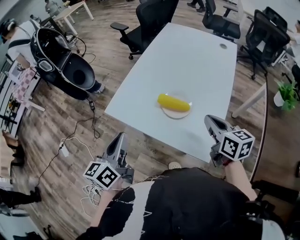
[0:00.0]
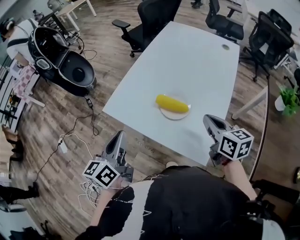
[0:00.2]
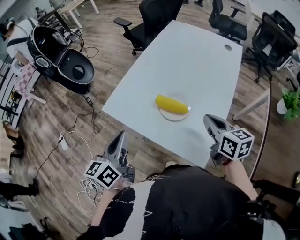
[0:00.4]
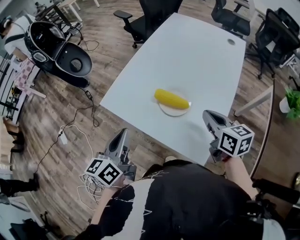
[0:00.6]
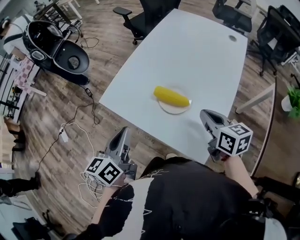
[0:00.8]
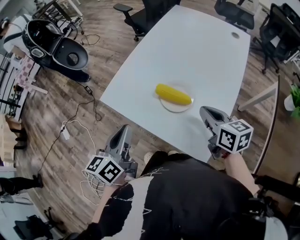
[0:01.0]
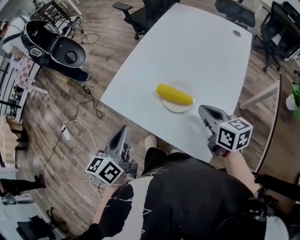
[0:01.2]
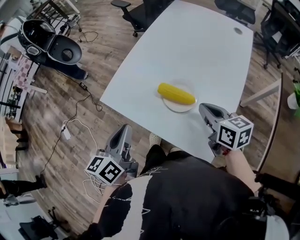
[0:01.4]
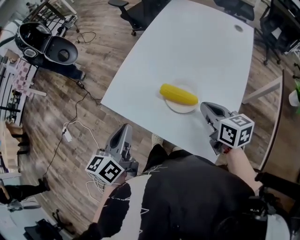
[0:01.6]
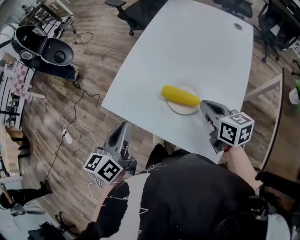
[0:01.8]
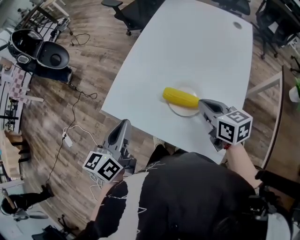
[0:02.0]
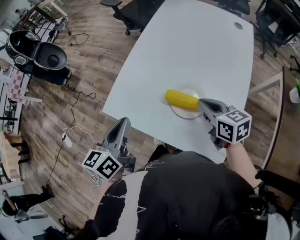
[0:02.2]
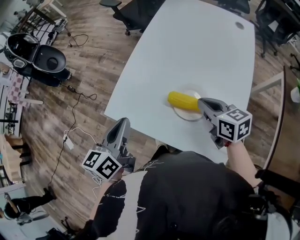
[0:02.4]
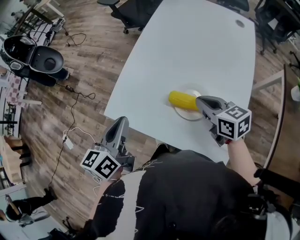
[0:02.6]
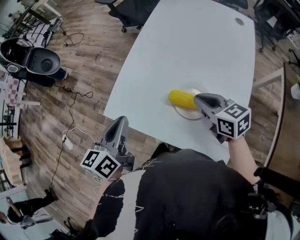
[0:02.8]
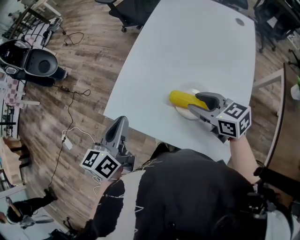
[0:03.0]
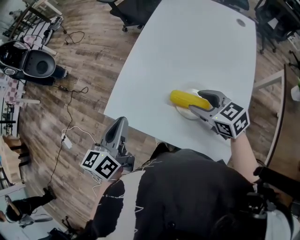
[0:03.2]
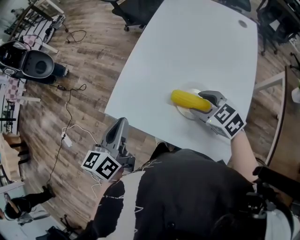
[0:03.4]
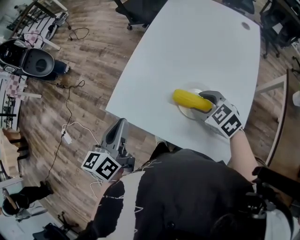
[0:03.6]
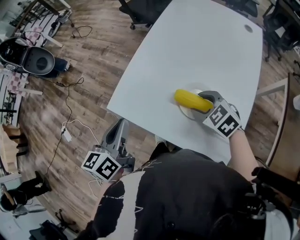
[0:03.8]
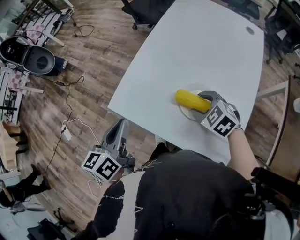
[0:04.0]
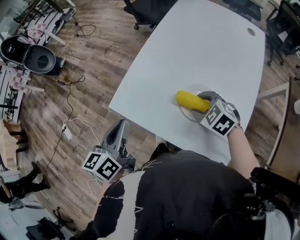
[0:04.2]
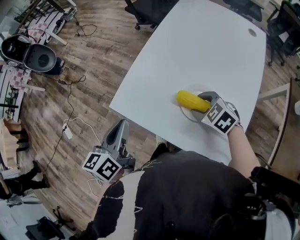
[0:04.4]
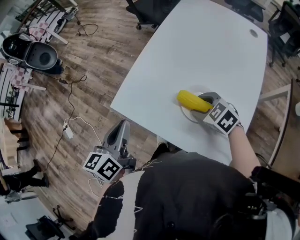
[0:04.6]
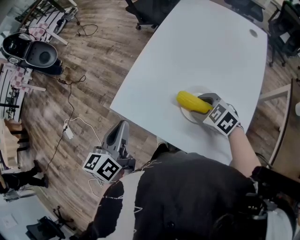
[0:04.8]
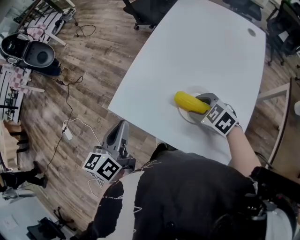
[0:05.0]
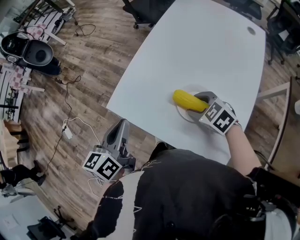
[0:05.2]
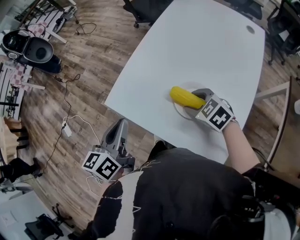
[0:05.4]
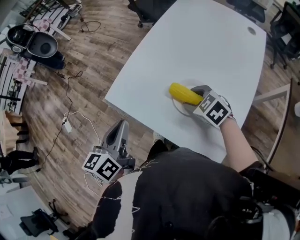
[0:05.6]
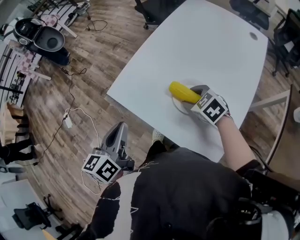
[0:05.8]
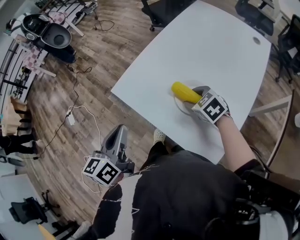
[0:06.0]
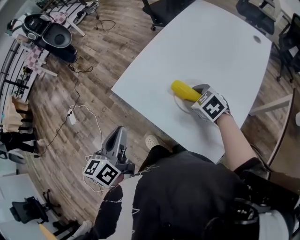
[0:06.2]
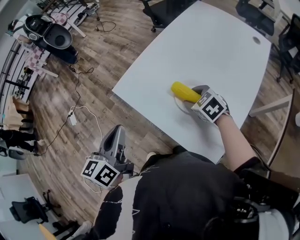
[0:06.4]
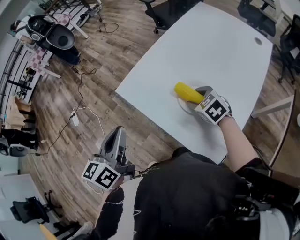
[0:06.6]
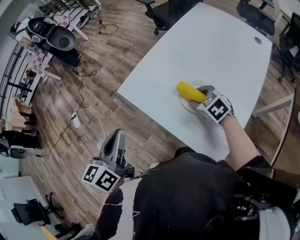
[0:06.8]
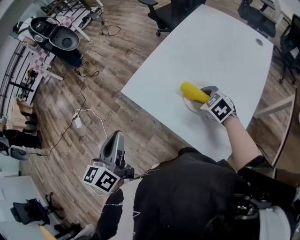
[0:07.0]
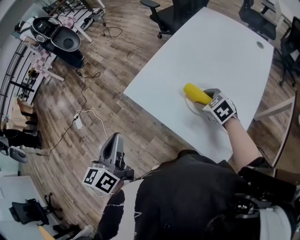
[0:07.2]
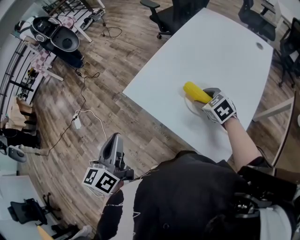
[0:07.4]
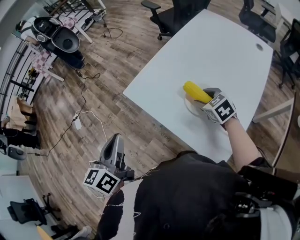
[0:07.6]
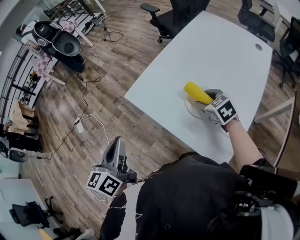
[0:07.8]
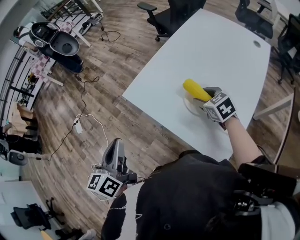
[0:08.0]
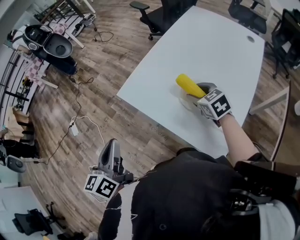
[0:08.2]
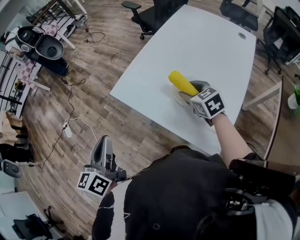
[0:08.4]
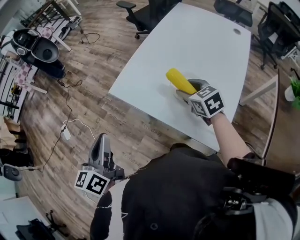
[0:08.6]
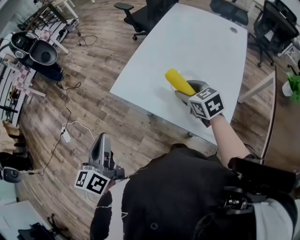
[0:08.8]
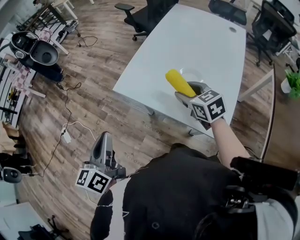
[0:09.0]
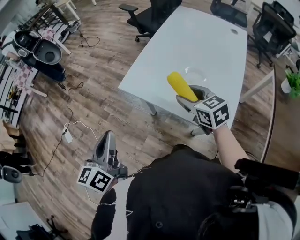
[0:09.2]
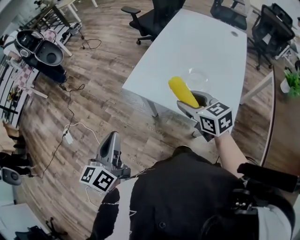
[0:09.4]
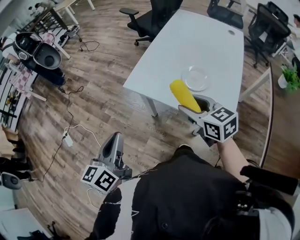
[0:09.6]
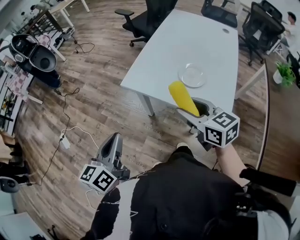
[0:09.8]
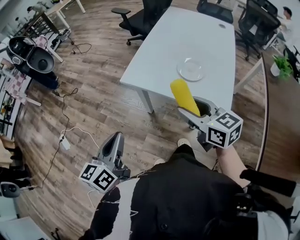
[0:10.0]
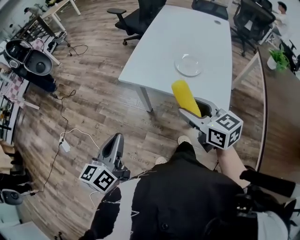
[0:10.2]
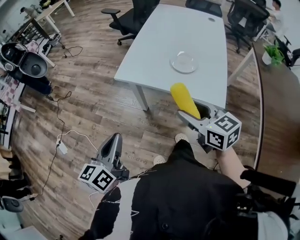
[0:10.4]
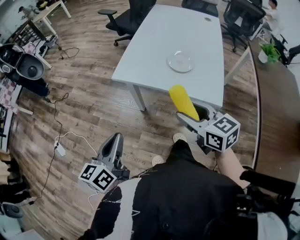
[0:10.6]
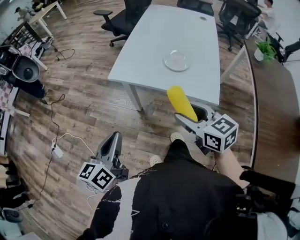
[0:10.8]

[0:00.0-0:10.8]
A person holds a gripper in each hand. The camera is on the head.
0:00.0 to 0:01.6: The left gripper moves roughly 5 cm, while the right gripper is displaced forward and downward by some 10 cm.
0:01.6 to 0:03.0: The right gripper is displaced to the left and forward by some 10 cm, and opens. The left gripper travels forward by some 10 cm.
0:03.0 to 0:04.6: The right gripper heads downward, covering some 5 cm, and turns by approximately 30 degrees.
0:04.6 to 0:06.2: The left gripper is displaced backward by about 10 cm.
0:06.2 to 0:07.8: The left gripper travels to the left by about 5 cm.
0:07.8 to 0:09.2: The right gripper travels to the left, upward and backward by approximately 15 cm, and rotates approximately 20 degrees, while the left gripper is displaced to the left by some 5 cm.
0:09.2 to 0:10.8: The left gripper moves backward, about 10 cm, and rotates roughly 20 degrees, while the right gripper goes roughly 20 cm backward.

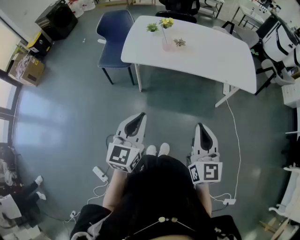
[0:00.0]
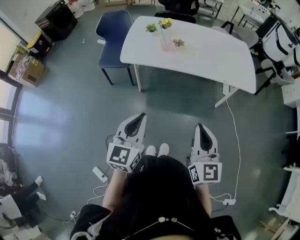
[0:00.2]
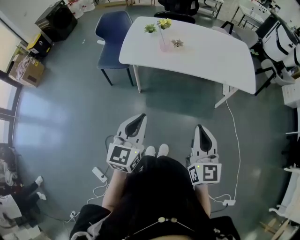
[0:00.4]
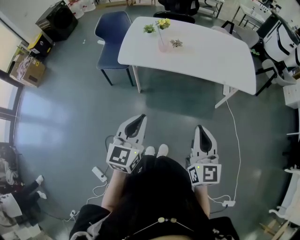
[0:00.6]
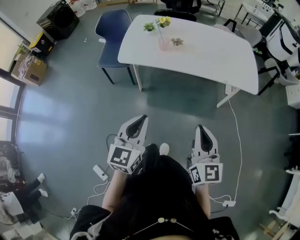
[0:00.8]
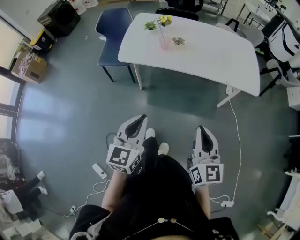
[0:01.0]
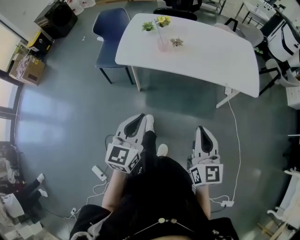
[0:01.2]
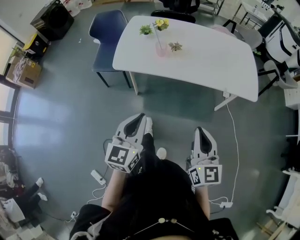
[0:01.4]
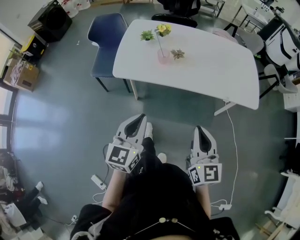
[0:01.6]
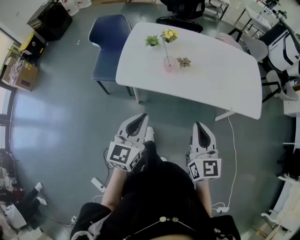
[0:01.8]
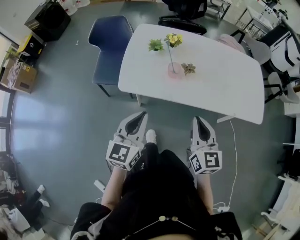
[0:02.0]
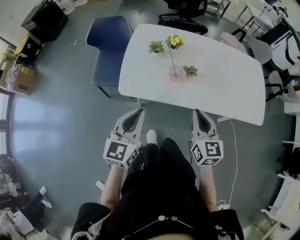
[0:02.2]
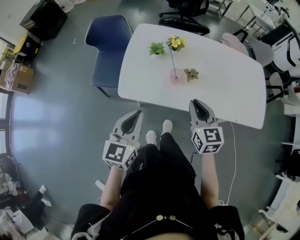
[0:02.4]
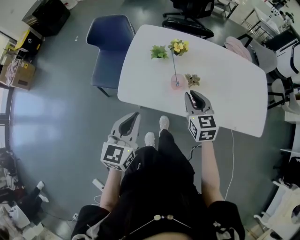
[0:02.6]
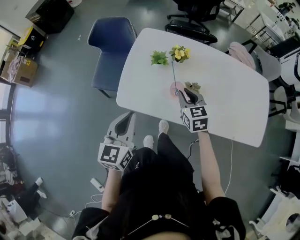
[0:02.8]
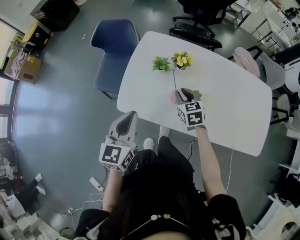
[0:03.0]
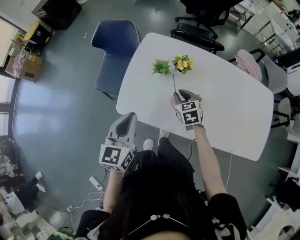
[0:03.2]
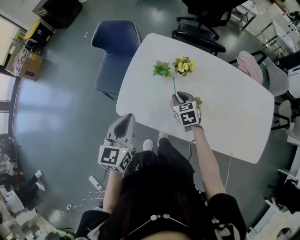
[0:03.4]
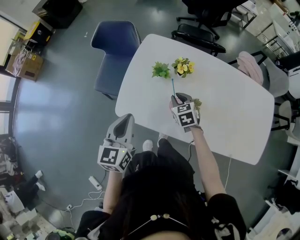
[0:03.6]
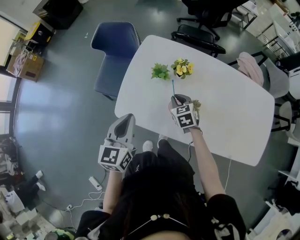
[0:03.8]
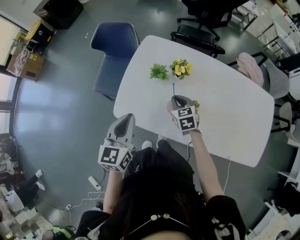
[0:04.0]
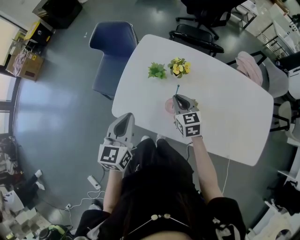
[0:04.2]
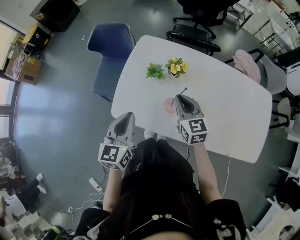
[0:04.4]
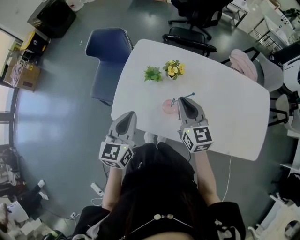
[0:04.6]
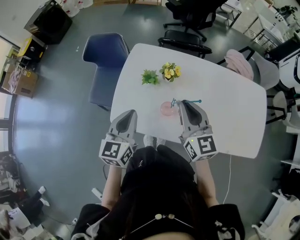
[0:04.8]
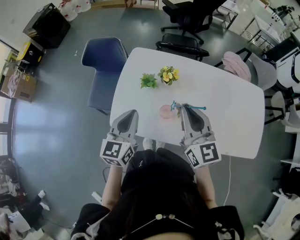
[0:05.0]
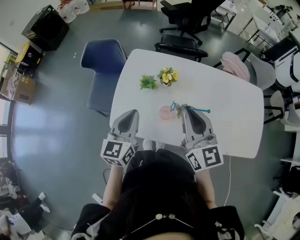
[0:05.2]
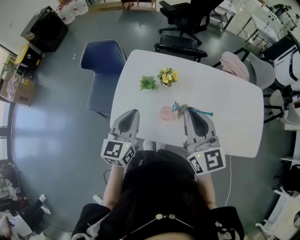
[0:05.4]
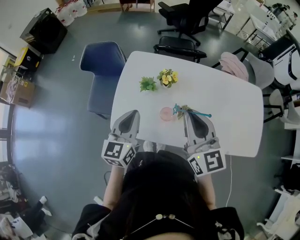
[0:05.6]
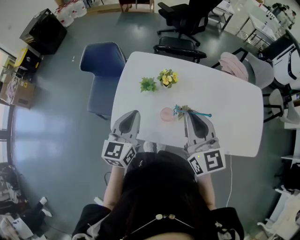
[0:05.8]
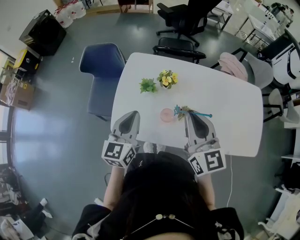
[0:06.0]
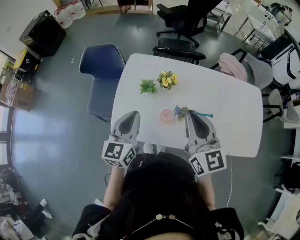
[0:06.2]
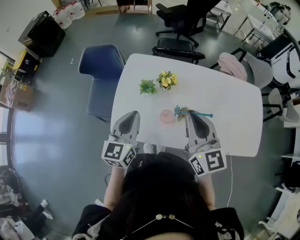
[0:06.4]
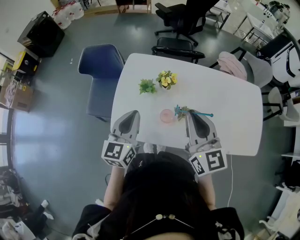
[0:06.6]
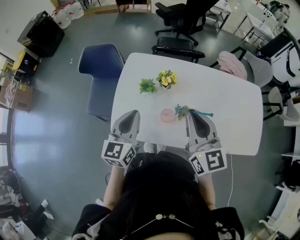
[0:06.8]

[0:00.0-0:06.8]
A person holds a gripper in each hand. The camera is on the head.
0:00.0 to 0:01.4: Both grippers travel together forward, about 10 cm.
0:01.4 to 0:02.8: The left gripper heads forward and to the left, covering about 35 cm. Meanwhile the right gripper goes roughly 50 cm forward, and swivels approximately 30 degrees.
0:02.8 to 0:04.0: The right gripper goes roughly 10 cm downward and forward. The left gripper travels forward by some 5 cm.
0:04.0 to 0:05.4: The right gripper heads upward, covering roughly 30 cm, and tips its fingers upward by roughly 40 degrees. Meanwhile the left gripper moves about 5 cm.
0:05.4 to 0:06.8: The two grippers keep their place.

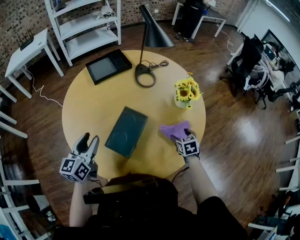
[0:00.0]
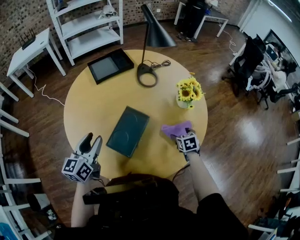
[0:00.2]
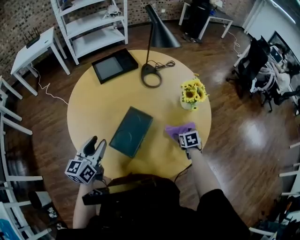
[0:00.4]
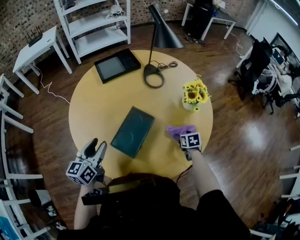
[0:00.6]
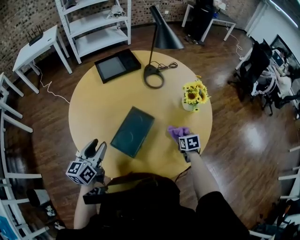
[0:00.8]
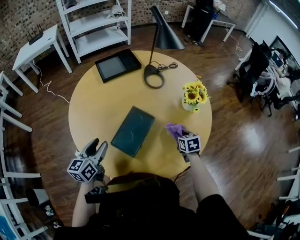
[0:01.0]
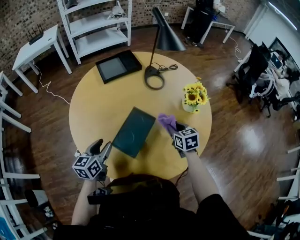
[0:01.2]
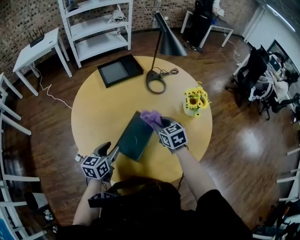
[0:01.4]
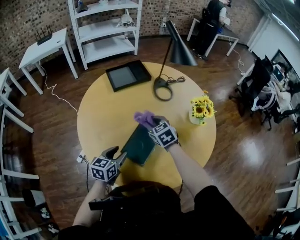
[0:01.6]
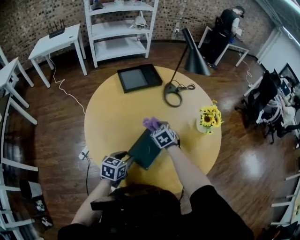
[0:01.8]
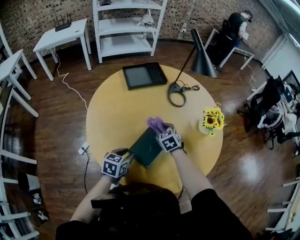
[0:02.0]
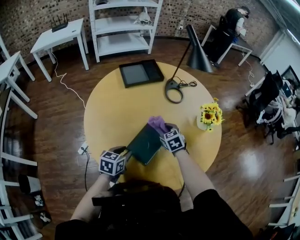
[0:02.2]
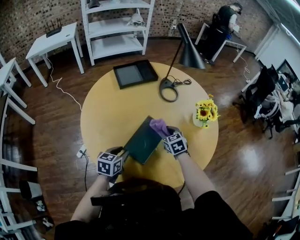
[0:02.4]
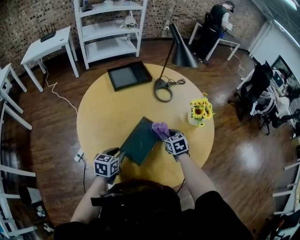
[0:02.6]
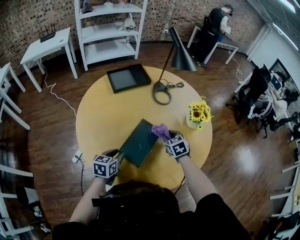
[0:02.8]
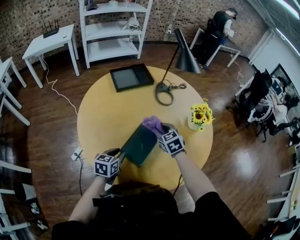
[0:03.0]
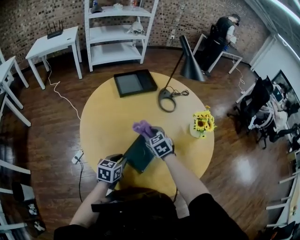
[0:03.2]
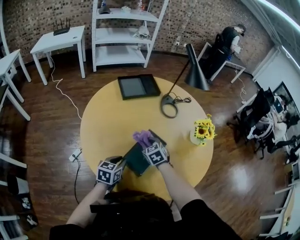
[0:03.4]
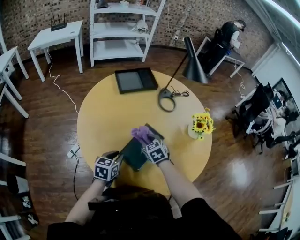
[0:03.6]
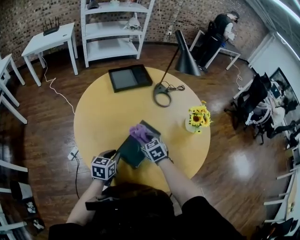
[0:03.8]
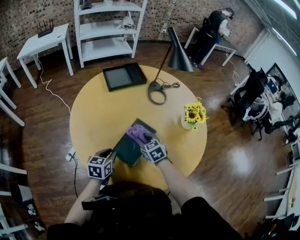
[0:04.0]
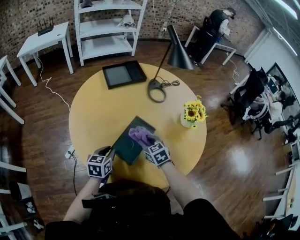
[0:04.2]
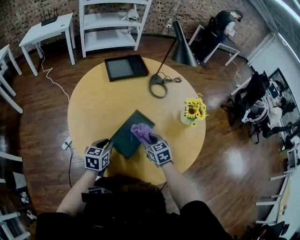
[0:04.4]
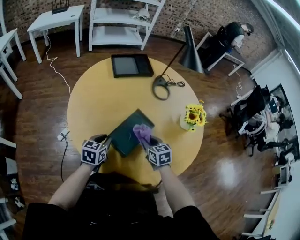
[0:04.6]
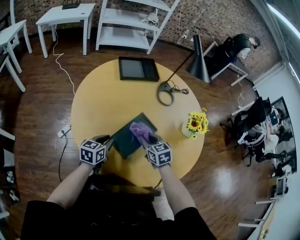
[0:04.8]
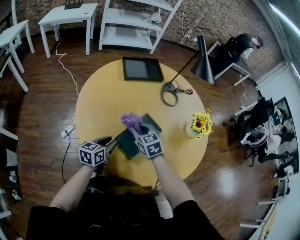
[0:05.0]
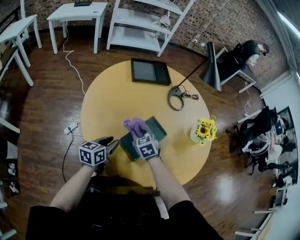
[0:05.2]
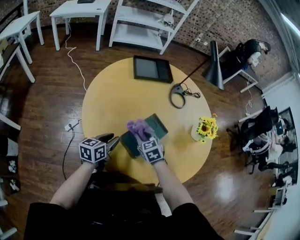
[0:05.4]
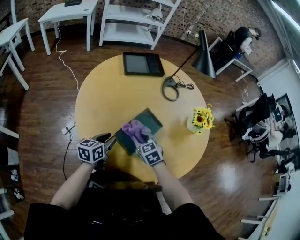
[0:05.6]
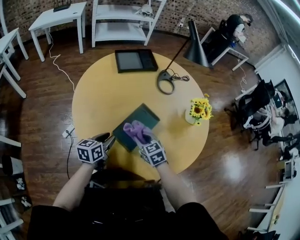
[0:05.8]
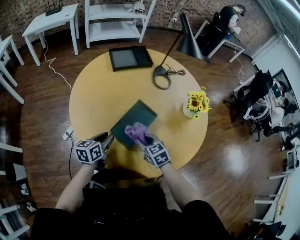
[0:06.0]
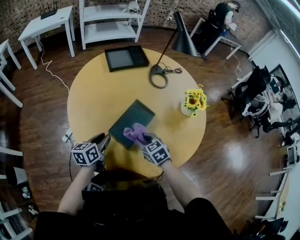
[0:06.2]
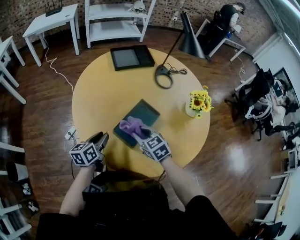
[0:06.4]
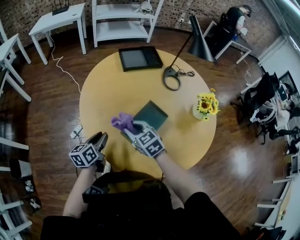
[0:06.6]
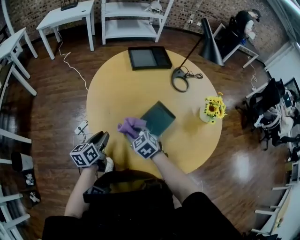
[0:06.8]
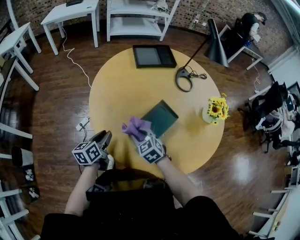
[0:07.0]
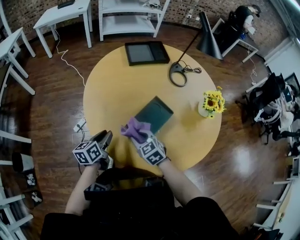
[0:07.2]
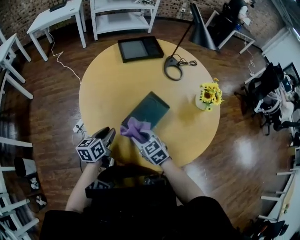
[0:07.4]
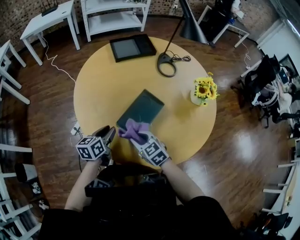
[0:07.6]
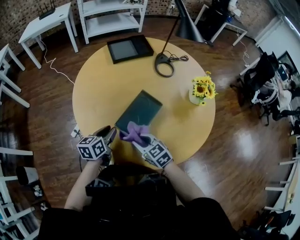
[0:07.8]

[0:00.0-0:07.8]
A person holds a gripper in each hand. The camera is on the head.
0:00.0 to 0:01.6: The right gripper moves to the left and upward, approximately 30 cm, rotates about 30 degrees, and closes up. The left gripper heads downward and to the right, covering roughly 10 cm.
0:01.6 to 0:03.2: The right gripper travels to the right and back again, some 10 cm each way, while the left gripper closes up.
0:03.2 to 0:04.6: The right gripper is displaced backward and to the right by some 10 cm.
0:04.6 to 0:06.2: The right gripper is displaced backward and to the left by roughly 10 cm.
0:06.2 to 0:07.8: The right gripper goes roughly 5 cm to the left; the left gripper reaches about 10 cm to the left, then returns.
